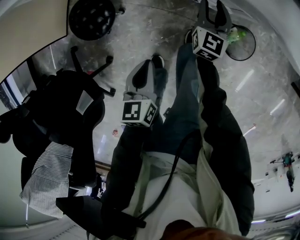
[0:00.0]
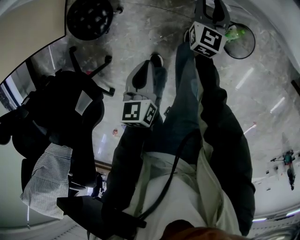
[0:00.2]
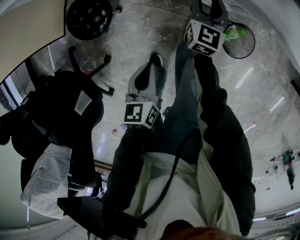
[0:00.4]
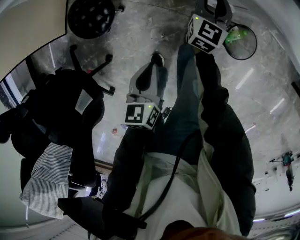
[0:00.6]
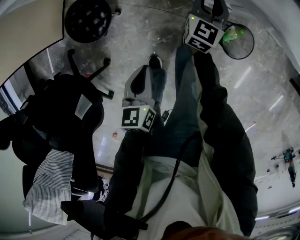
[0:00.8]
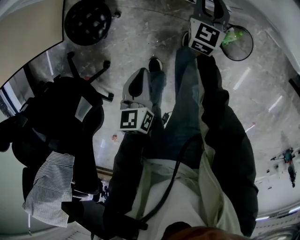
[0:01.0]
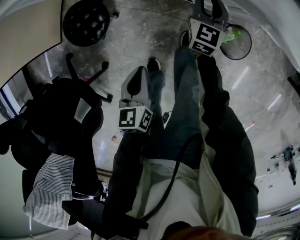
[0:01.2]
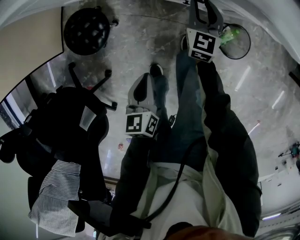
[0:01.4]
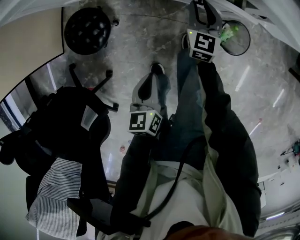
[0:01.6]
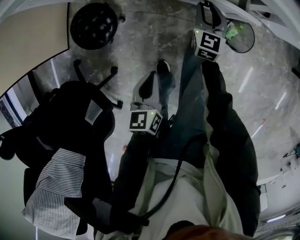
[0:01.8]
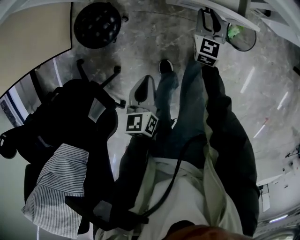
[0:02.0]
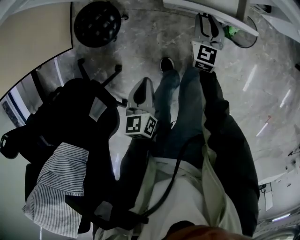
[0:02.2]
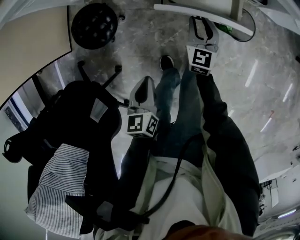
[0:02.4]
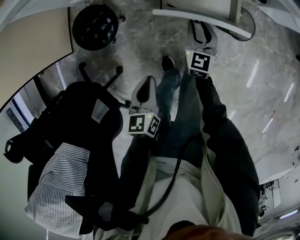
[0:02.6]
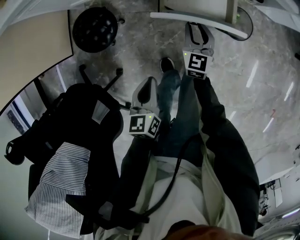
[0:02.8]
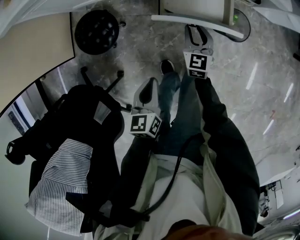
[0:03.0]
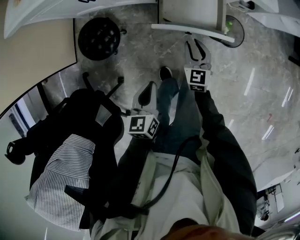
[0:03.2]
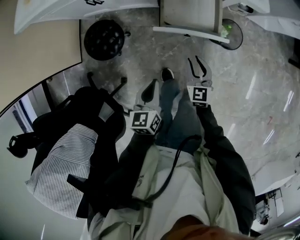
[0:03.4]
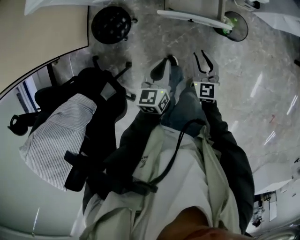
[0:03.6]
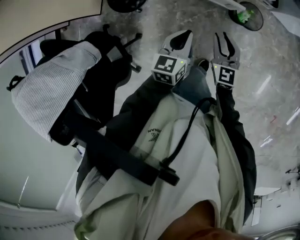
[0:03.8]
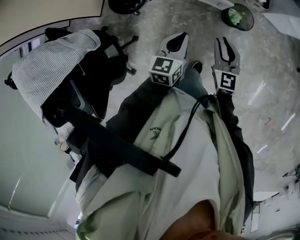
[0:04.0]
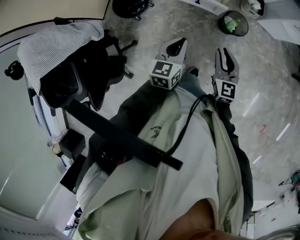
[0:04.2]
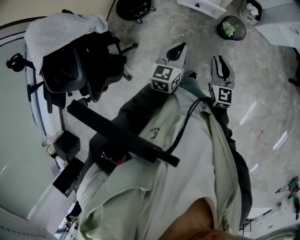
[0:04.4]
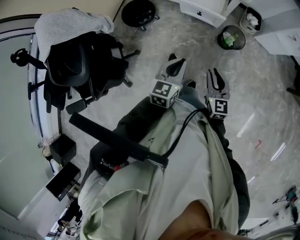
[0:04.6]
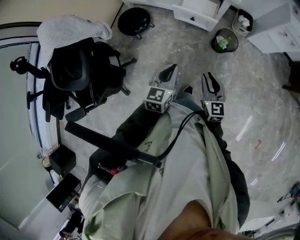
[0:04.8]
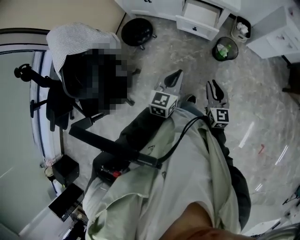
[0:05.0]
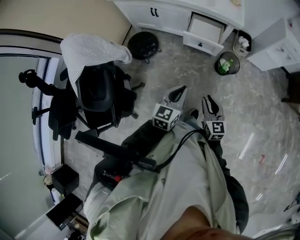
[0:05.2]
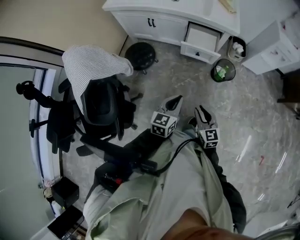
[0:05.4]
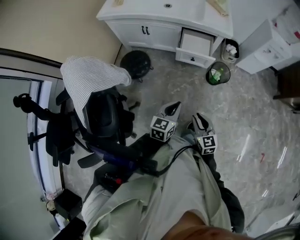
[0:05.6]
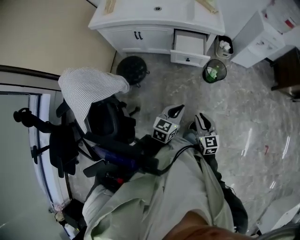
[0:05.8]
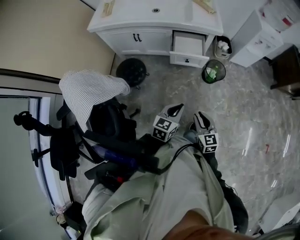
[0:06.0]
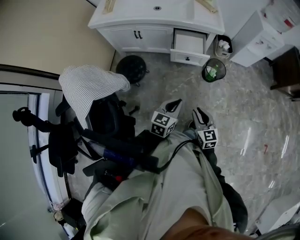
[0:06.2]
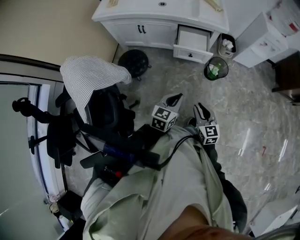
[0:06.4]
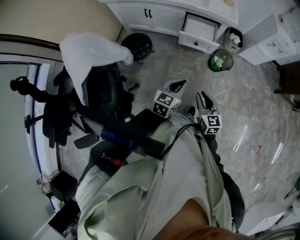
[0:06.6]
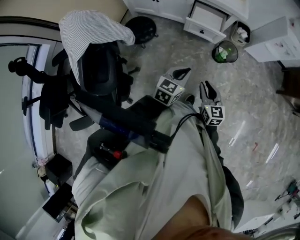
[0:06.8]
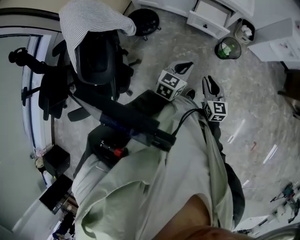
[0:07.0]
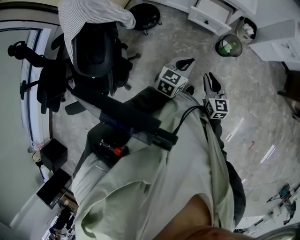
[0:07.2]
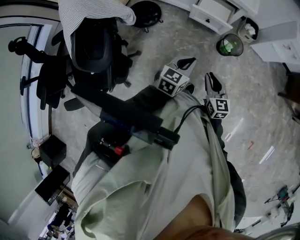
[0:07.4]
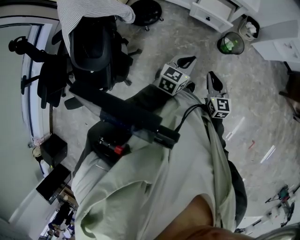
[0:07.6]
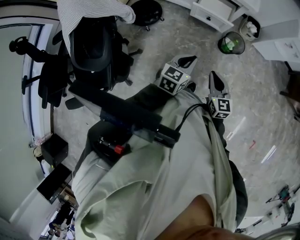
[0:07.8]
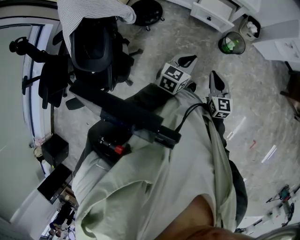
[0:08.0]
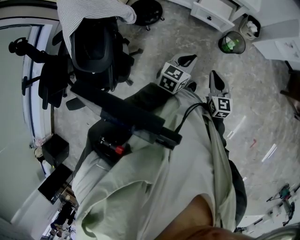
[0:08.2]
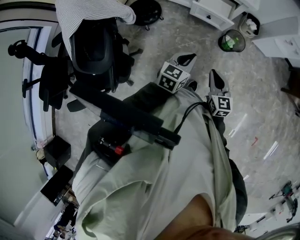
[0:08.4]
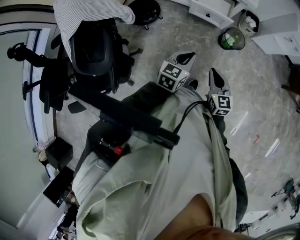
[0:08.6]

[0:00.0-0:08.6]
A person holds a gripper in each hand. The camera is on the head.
0:00.0 to 0:01.4: The grippers move only a little.
0:01.4 to 0:02.8: The left gripper heads backward, covering roughly 10 cm; the right gripper is displaced backward by approximately 20 cm.
0:02.8 to 0:04.4: The left gripper is displaced upward, to the right and backward by some 30 cm; the right gripper heads backward, upward and to the right, covering roughly 40 cm, and turns by roughly 20 degrees.
0:04.4 to 0:05.8: The right gripper travels to the left and backward by roughly 15 cm; the left gripper moves backward and to the left, some 10 cm, and turns by about 20 degrees.
0:05.8 to 0:08.6: The grippers make only small movements.

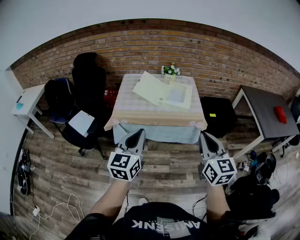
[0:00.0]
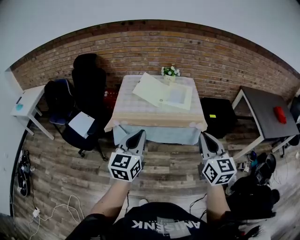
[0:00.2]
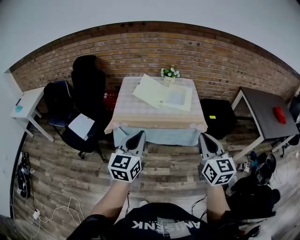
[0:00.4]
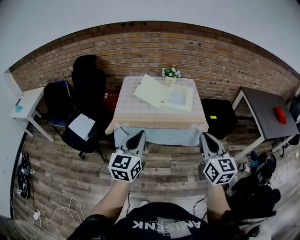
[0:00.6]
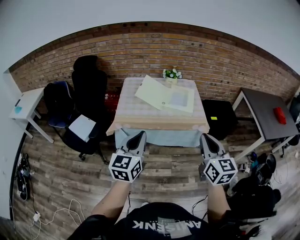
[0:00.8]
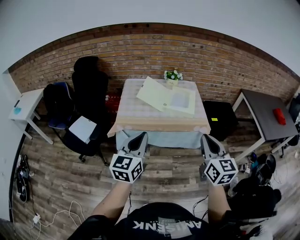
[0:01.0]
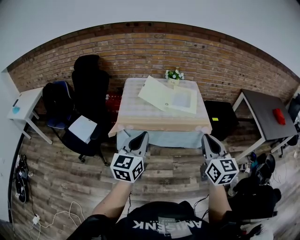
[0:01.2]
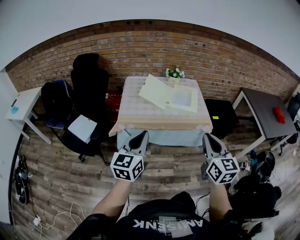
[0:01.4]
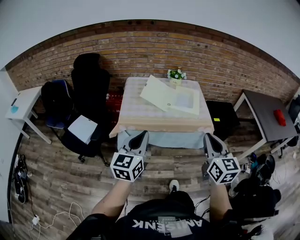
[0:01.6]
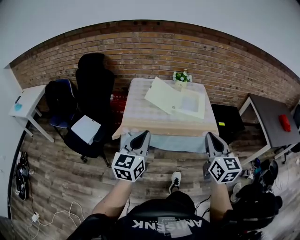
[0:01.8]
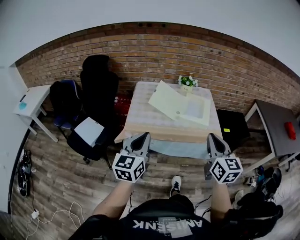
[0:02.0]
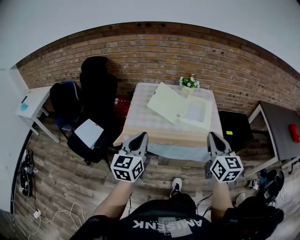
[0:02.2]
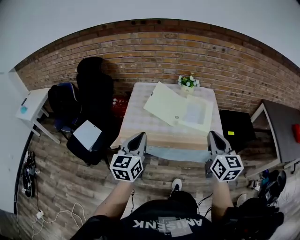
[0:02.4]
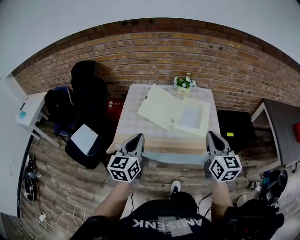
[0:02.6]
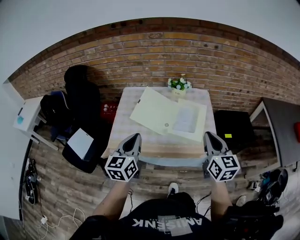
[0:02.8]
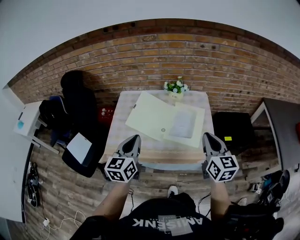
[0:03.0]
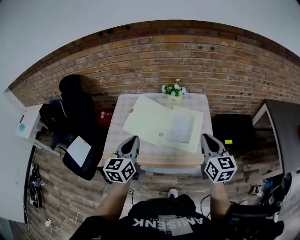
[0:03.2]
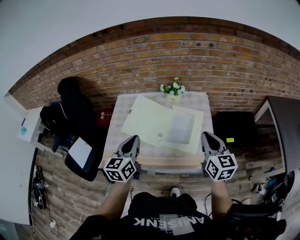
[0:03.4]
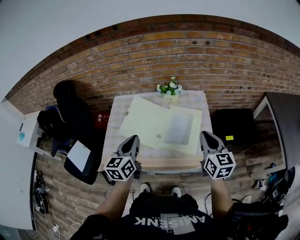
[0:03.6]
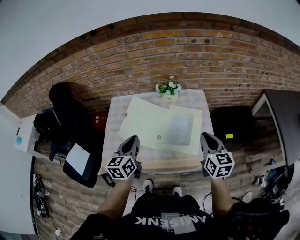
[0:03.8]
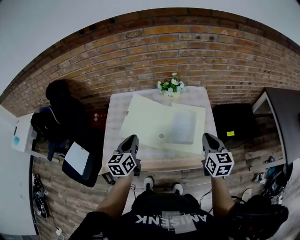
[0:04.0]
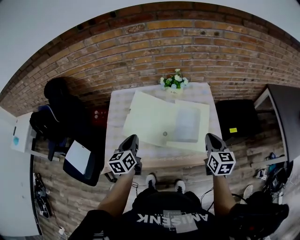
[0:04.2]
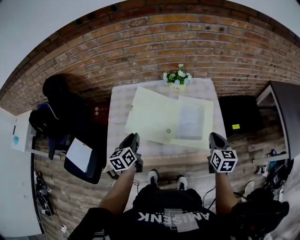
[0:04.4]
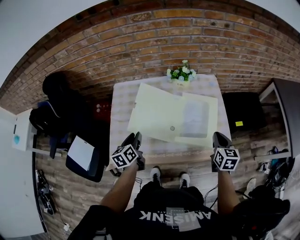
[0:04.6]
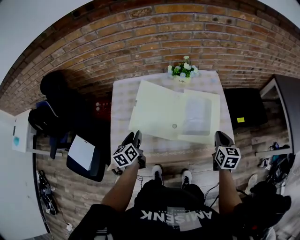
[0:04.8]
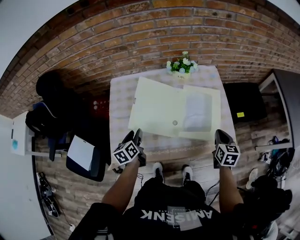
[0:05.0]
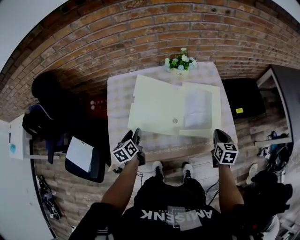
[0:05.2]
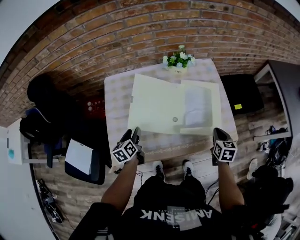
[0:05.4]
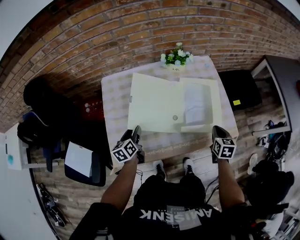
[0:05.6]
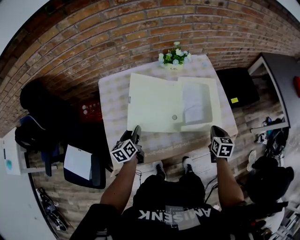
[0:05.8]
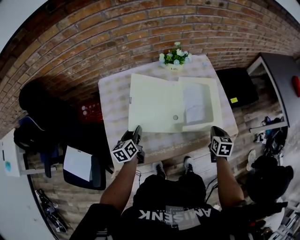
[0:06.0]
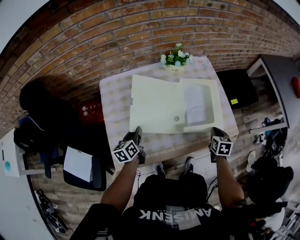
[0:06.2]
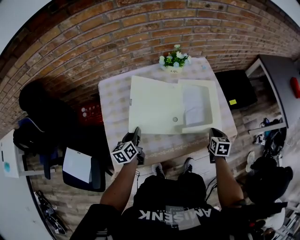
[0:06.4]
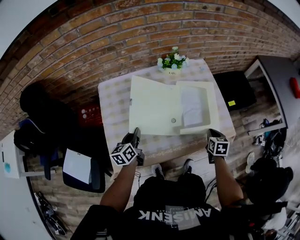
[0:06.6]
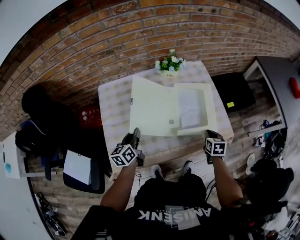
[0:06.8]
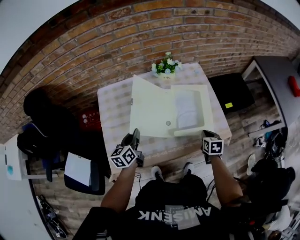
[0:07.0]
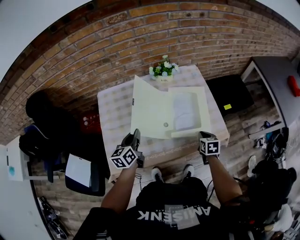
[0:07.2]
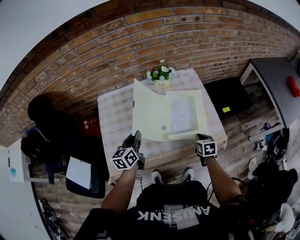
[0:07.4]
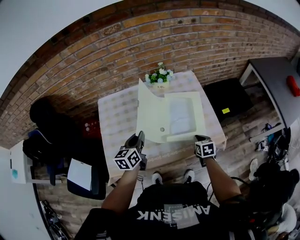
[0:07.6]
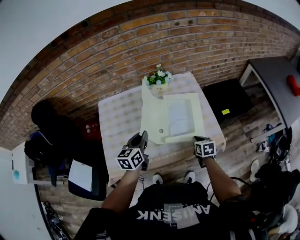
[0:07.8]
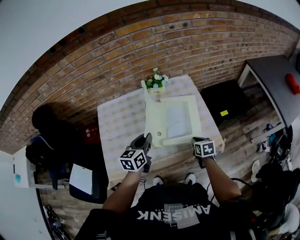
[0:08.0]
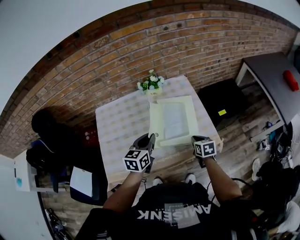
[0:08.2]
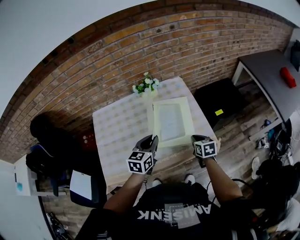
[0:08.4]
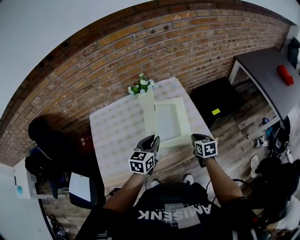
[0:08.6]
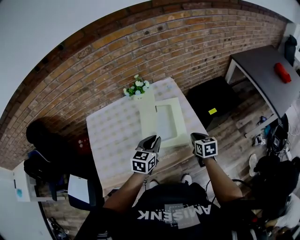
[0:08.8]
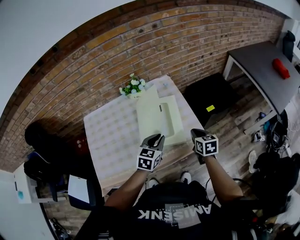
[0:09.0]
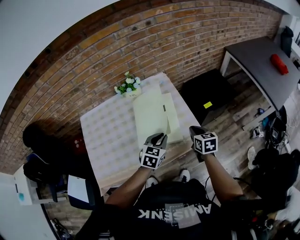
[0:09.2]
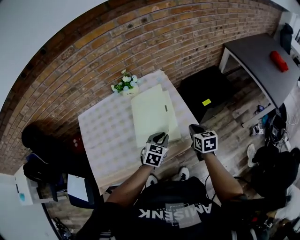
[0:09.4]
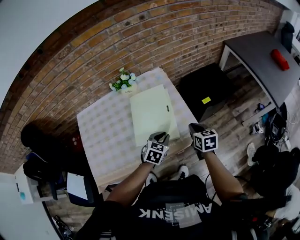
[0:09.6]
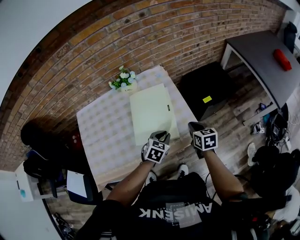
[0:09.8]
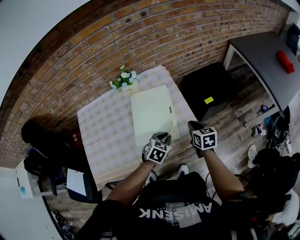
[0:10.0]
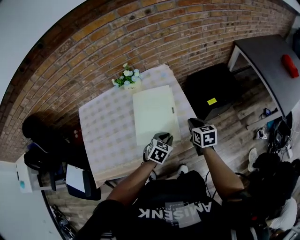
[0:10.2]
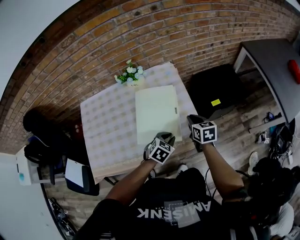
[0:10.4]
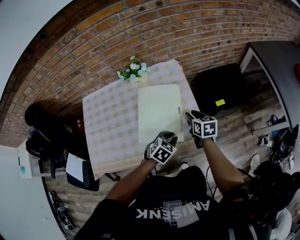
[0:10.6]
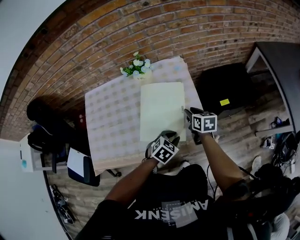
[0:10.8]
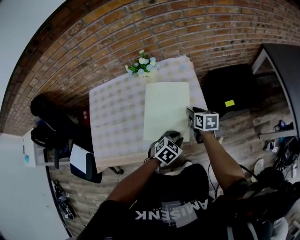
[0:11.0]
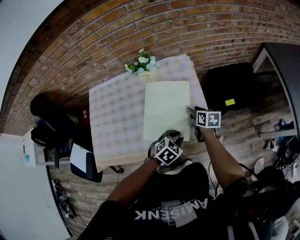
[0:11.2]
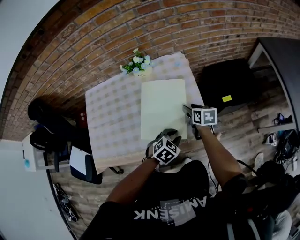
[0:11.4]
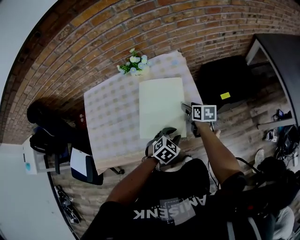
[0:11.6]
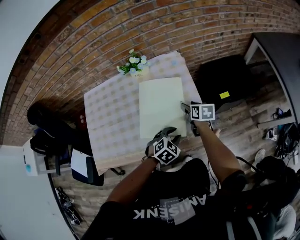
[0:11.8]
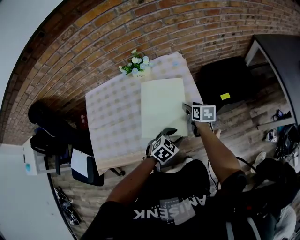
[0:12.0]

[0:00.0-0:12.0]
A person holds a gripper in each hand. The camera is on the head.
0:00.0 to 0:01.6: The left gripper travels to the left and forward by about 10 cm. The right gripper shifts some 10 cm to the left.
0:01.6 to 0:03.0: The two grippers go some 35 cm forward.
0:03.0 to 0:04.4: The right gripper is displaced downward and forward by some 20 cm, and swivels roughly 20 degrees; the left gripper shifts roughly 25 cm forward, downward and to the left, and swivels approximately 20 degrees.
0:04.4 to 0:06.0: The left gripper shifts some 15 cm downward and to the left, and opens. The right gripper heads downward, covering some 15 cm, and changes its angle by about 20 degrees.
0:06.0 to 0:07.6: The left gripper heads upward and to the right, covering some 20 cm, and closes its fingers.
0:07.6 to 0:09.0: The right gripper shifts some 15 cm to the right and upward, while the left gripper is displaced to the right by roughly 25 cm, and swivels roughly 40 degrees.
0:09.0 to 0:10.4: The right gripper goes some 10 cm forward. Meanwhile the left gripper shifts approximately 15 cm downward and to the right, and turns by some 20 degrees.
0:10.4 to 0:12.0: The left gripper opens. The right gripper shifts approximately 10 cm downward and forward, and opens up.

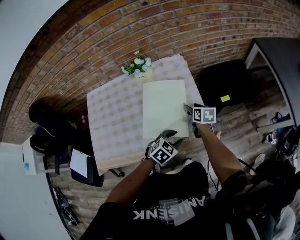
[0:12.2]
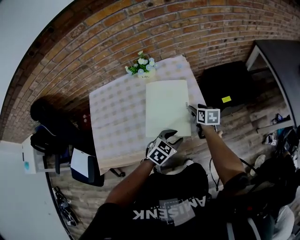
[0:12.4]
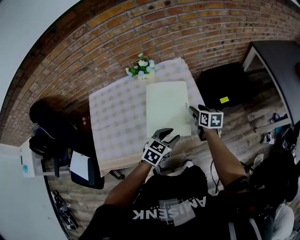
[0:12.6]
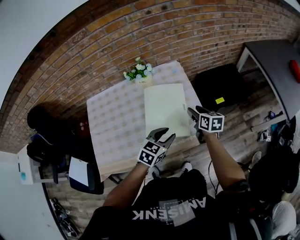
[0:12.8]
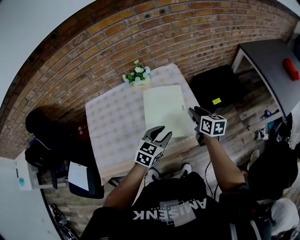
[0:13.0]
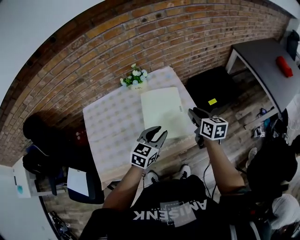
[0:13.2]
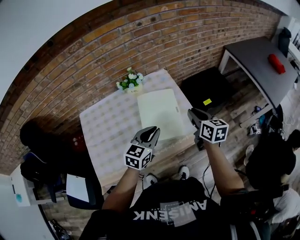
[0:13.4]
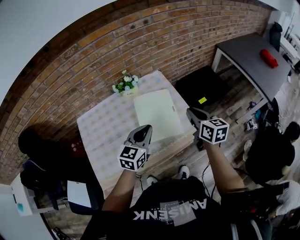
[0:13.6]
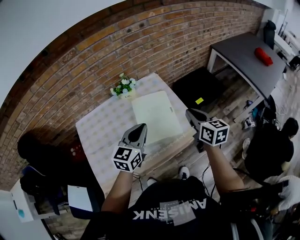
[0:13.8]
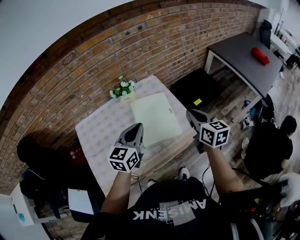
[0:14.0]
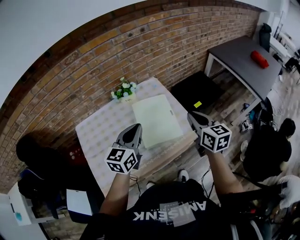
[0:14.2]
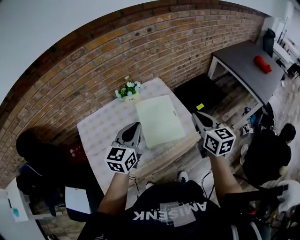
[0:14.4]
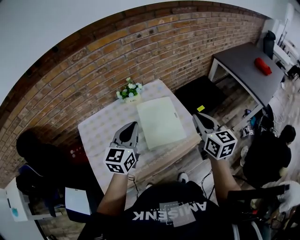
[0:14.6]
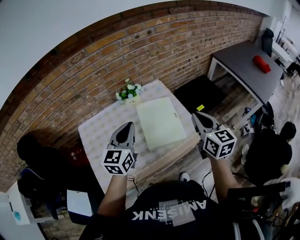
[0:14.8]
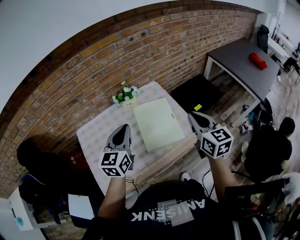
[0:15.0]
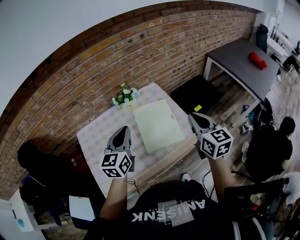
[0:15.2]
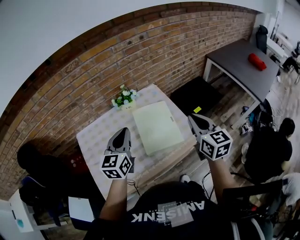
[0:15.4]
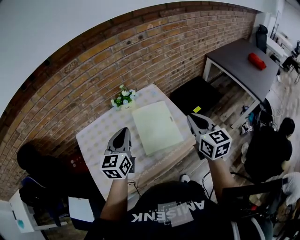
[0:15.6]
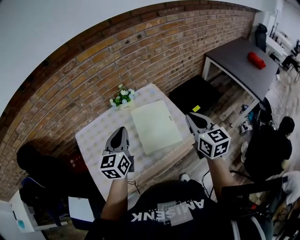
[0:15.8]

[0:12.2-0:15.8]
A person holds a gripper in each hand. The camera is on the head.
0:12.2 to 0:14.0: The left gripper travels upward and to the left by some 30 cm, points its fingers approximately 40 degrees further upward, and closes. Meanwhile the right gripper is displaced upward and backward by some 30 cm, swivels approximately 30 degrees, and closes.
0:14.0 to 0:15.8: The left gripper is displaced to the left by some 5 cm; the right gripper goes about 5 cm upward.
